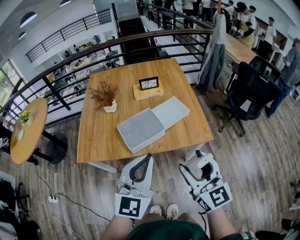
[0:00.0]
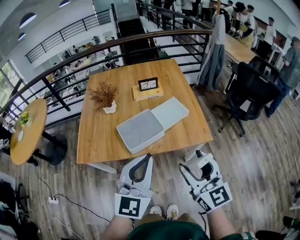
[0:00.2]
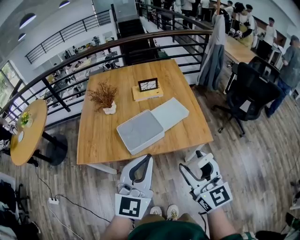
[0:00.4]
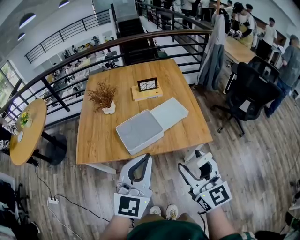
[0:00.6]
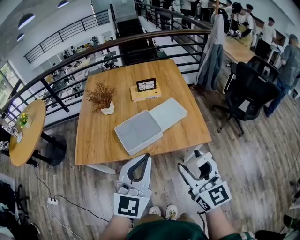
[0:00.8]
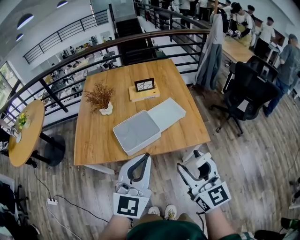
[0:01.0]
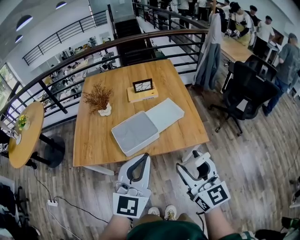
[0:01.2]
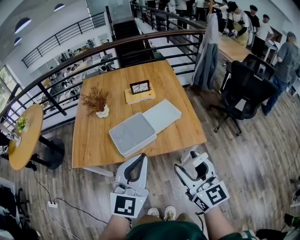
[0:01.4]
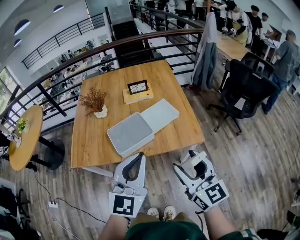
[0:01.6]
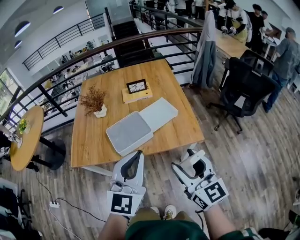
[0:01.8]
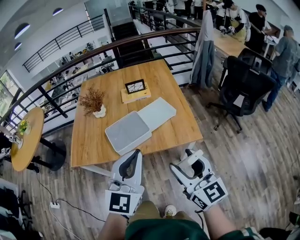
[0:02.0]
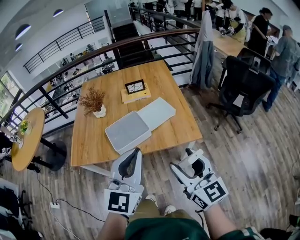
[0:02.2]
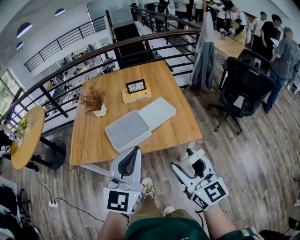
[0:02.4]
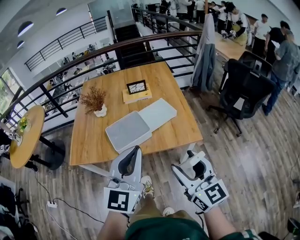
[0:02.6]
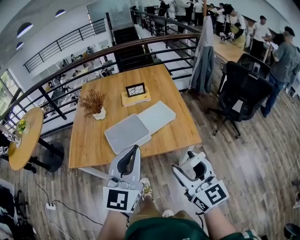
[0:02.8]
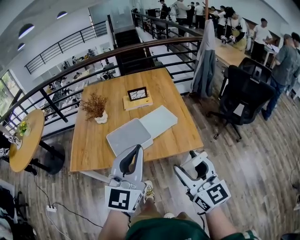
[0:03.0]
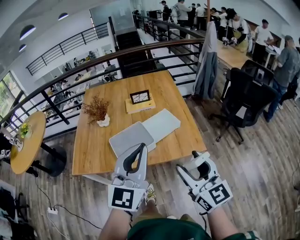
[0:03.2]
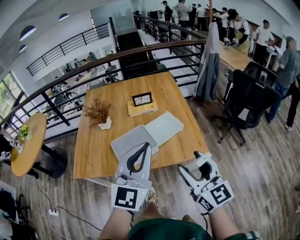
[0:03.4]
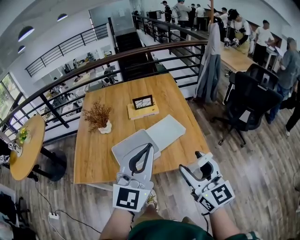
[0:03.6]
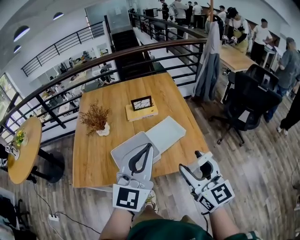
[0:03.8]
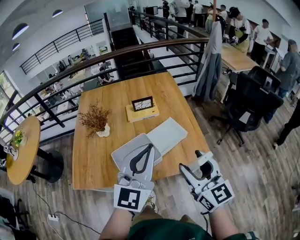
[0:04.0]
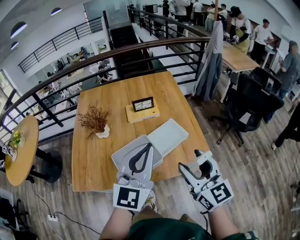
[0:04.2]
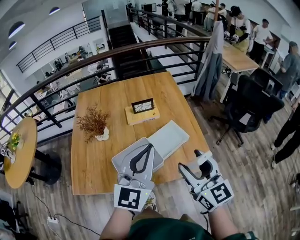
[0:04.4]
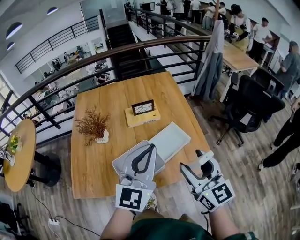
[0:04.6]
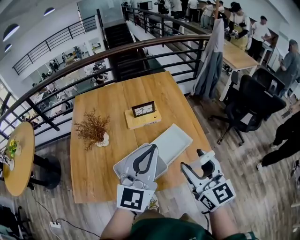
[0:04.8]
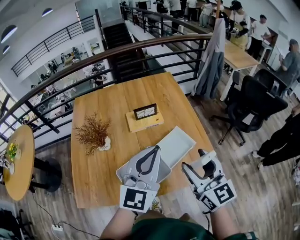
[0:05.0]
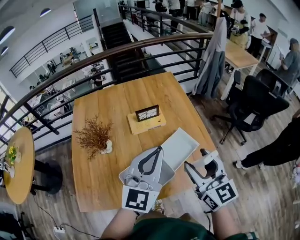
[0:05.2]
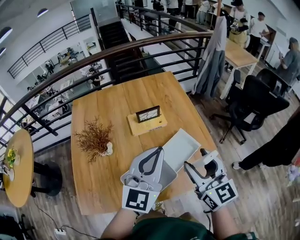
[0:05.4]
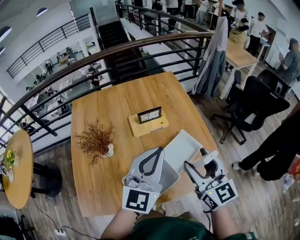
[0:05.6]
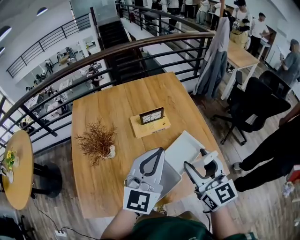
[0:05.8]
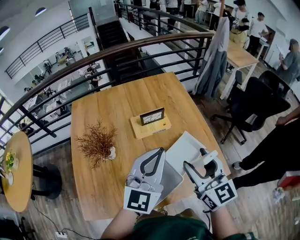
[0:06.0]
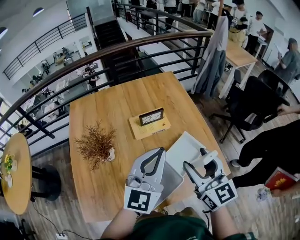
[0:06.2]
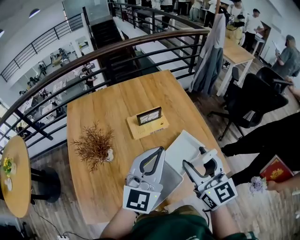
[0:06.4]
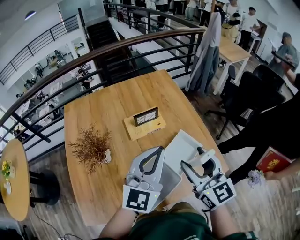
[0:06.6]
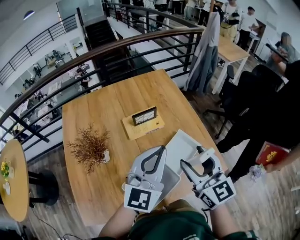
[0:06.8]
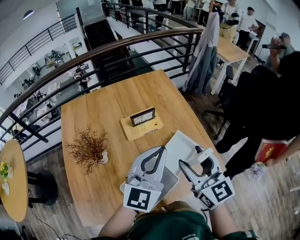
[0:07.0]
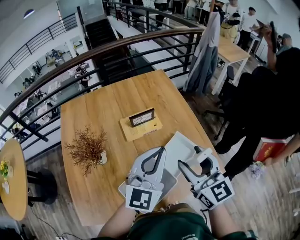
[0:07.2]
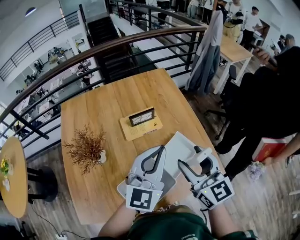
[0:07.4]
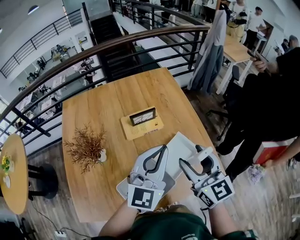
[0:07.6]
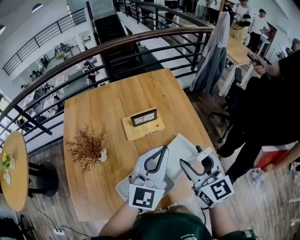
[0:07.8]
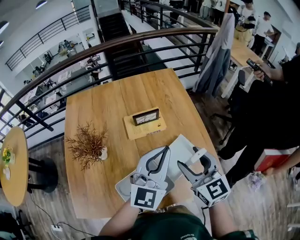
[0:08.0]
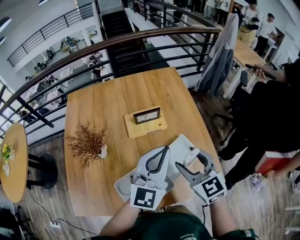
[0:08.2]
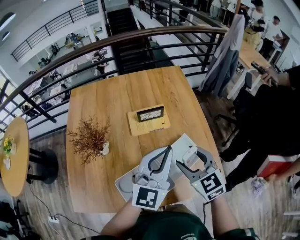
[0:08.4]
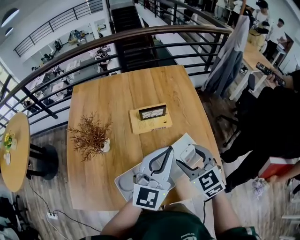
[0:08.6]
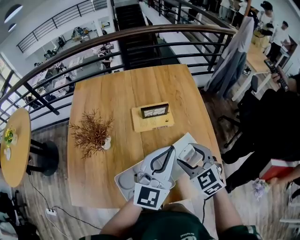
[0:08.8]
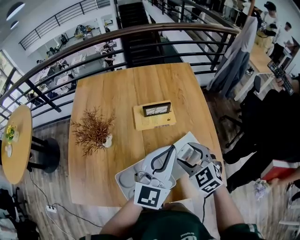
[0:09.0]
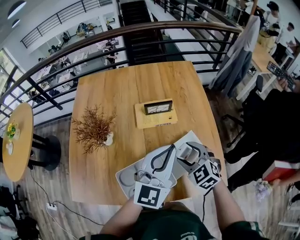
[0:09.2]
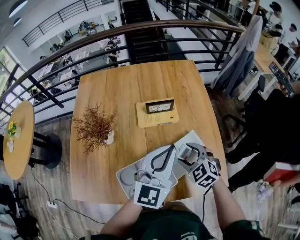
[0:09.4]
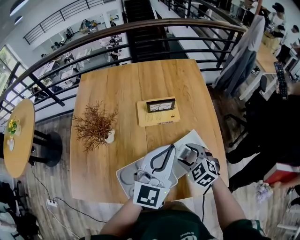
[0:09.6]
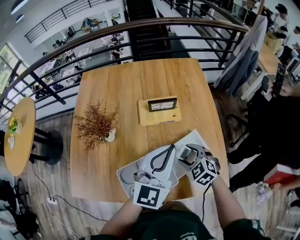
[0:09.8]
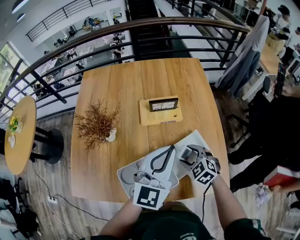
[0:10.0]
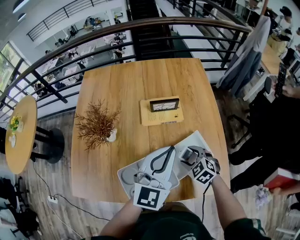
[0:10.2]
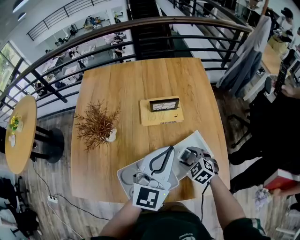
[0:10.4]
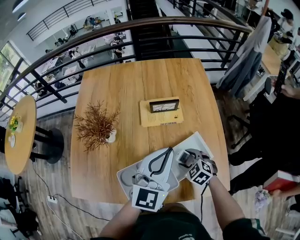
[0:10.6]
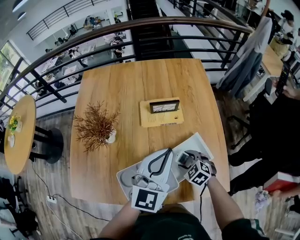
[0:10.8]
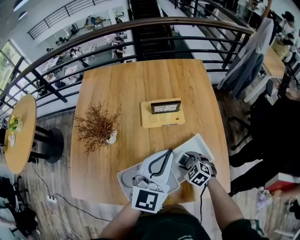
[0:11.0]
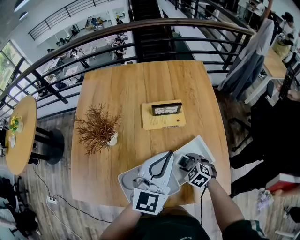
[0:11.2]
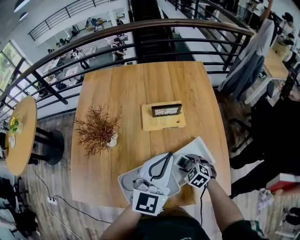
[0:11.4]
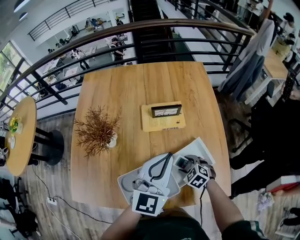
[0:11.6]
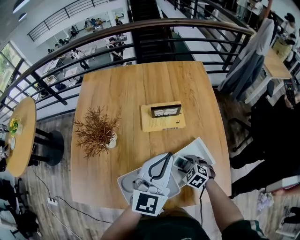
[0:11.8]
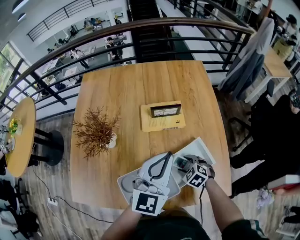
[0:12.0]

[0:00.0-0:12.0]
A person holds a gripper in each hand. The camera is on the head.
0:00.0 to 0:01.6: The right gripper moves about 5 cm.
0:01.6 to 0:03.0: The grippers make only small movements.
0:03.0 to 0:04.4: The grippers both shift forward by approximately 20 cm.
0:04.4 to 0:06.0: Both grippers move forward and to the left, roughly 15 cm.
0:06.0 to 0:07.6: The left gripper moves about 5 cm, while the right gripper shifts by approximately 5 cm.
0:07.6 to 0:09.0: The right gripper goes some 15 cm downward, and tips its fingers downward by some 30 degrees.
0:09.0 to 0:10.4: The right gripper moves downward, some 15 cm.
0:10.4 to 0:12.0: The right gripper travels downward by some 5 cm.

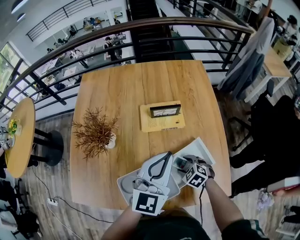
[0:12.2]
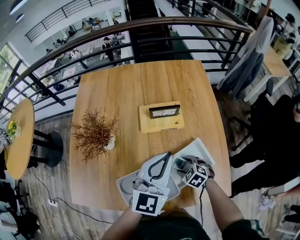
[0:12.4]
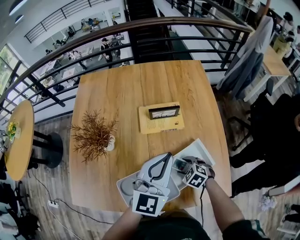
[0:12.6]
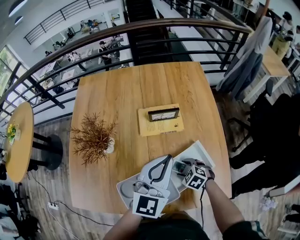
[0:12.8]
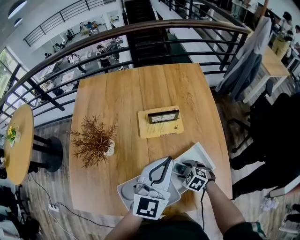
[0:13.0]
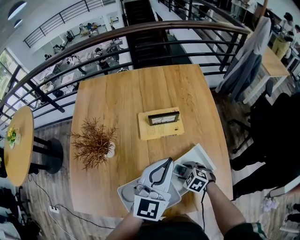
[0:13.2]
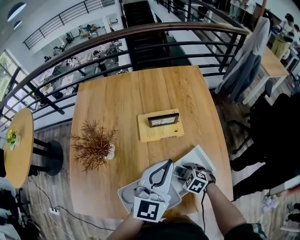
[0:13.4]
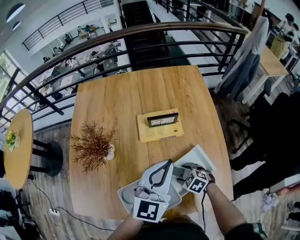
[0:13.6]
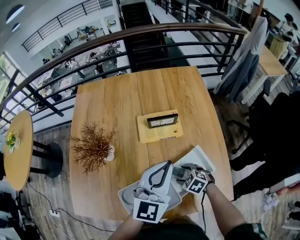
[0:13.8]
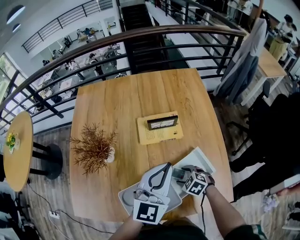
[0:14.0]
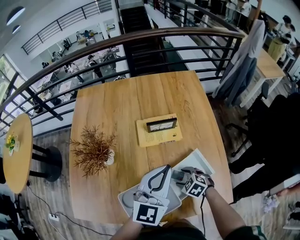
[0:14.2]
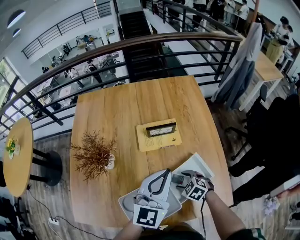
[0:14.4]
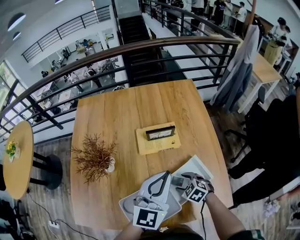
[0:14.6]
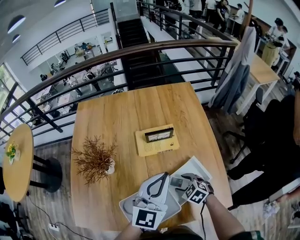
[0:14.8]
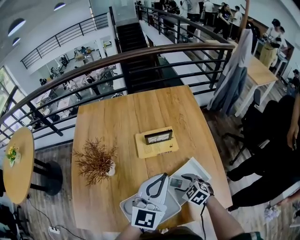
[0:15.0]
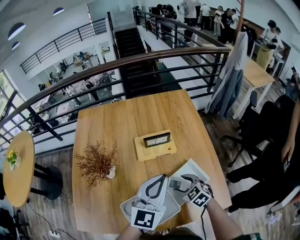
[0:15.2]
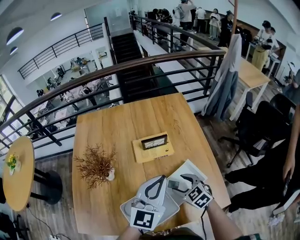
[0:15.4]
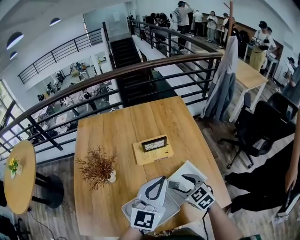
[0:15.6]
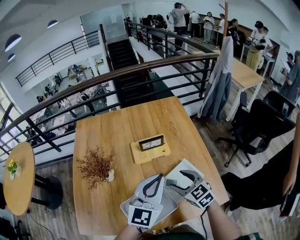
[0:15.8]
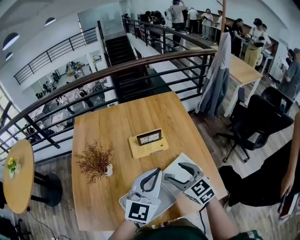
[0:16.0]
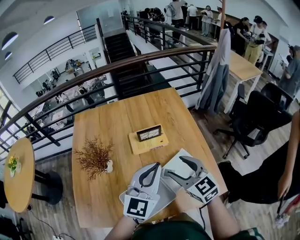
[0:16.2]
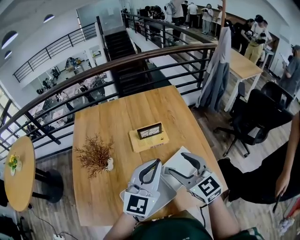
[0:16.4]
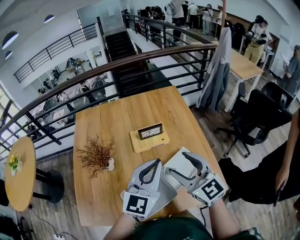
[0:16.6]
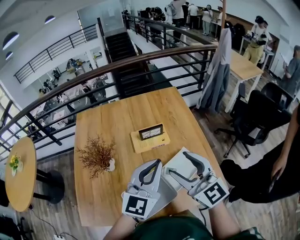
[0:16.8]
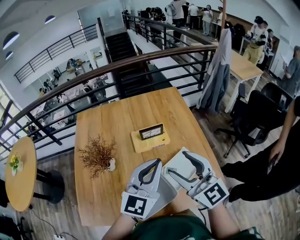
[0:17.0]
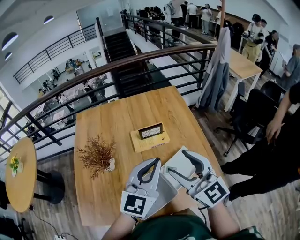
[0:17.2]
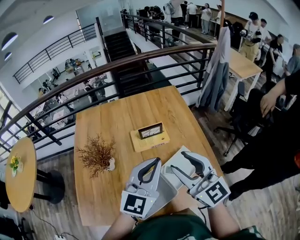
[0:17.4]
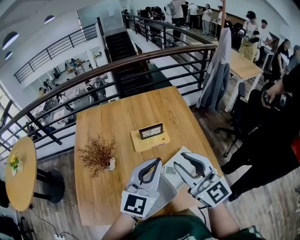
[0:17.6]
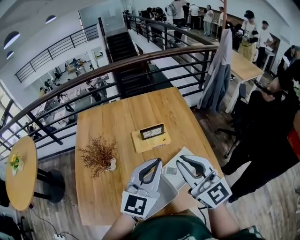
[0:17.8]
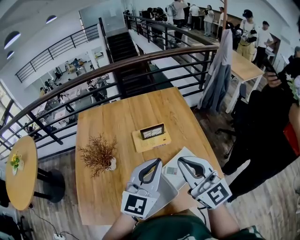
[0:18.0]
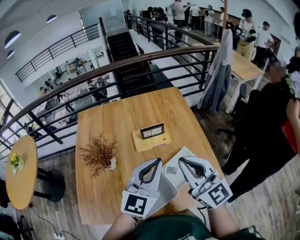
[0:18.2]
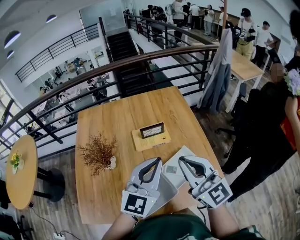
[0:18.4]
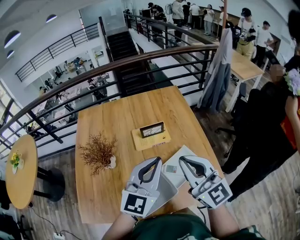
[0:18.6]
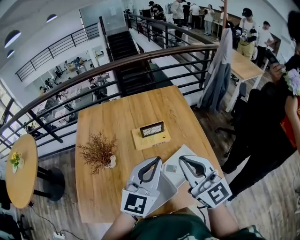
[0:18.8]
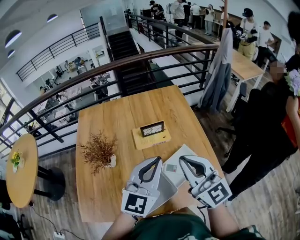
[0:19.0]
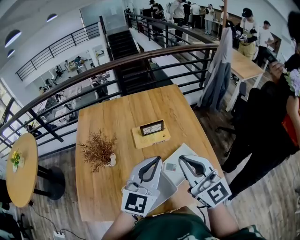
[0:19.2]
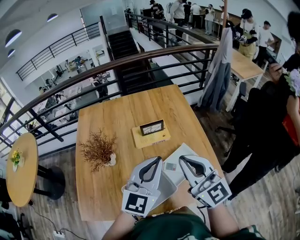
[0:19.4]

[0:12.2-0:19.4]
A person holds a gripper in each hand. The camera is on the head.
0:12.2 to 0:13.6: There are only small adjustments of the grippers.
0:13.6 to 0:15.0: The right gripper goes some 5 cm upward.
0:15.0 to 0:16.6: The left gripper heads upward, covering about 5 cm. The right gripper is displaced upward by roughly 30 cm, and tips its fingers upward by approximately 50 degrees.
0:16.6 to 0:18.0: The right gripper shifts about 5 cm upward, and closes its fingers.
0:18.0 to 0:19.4: The grippers stay close to where they were, moving slightly.

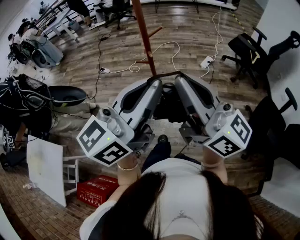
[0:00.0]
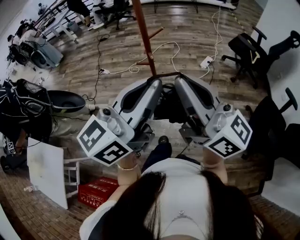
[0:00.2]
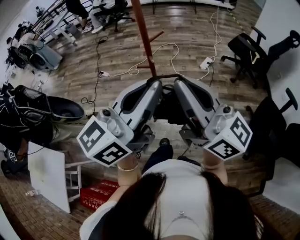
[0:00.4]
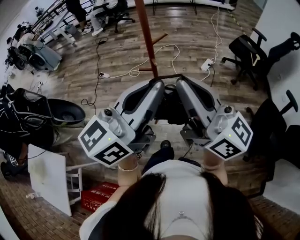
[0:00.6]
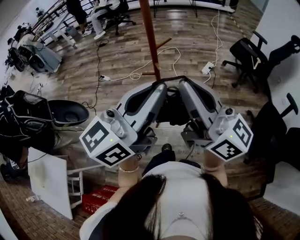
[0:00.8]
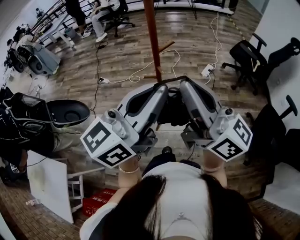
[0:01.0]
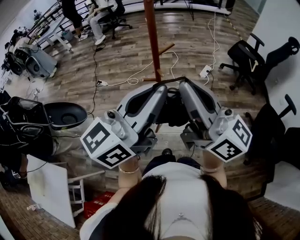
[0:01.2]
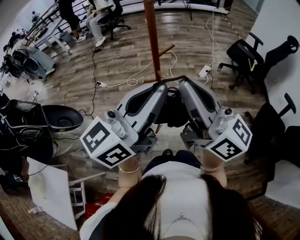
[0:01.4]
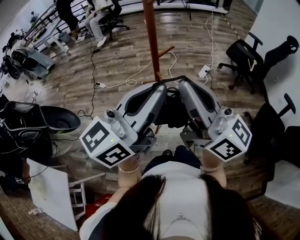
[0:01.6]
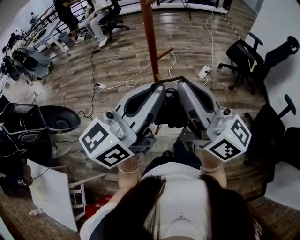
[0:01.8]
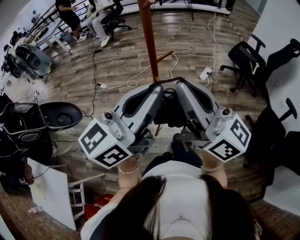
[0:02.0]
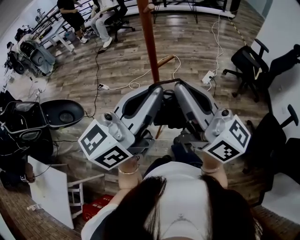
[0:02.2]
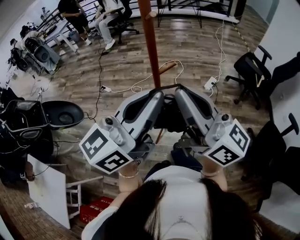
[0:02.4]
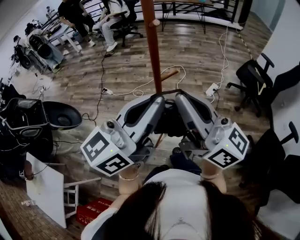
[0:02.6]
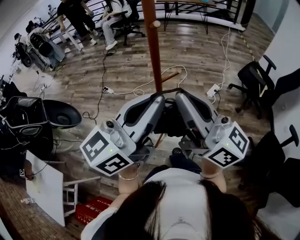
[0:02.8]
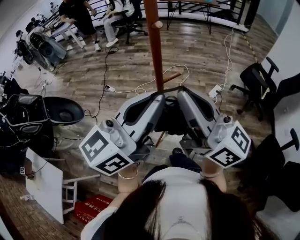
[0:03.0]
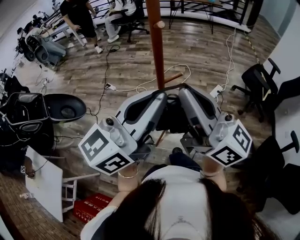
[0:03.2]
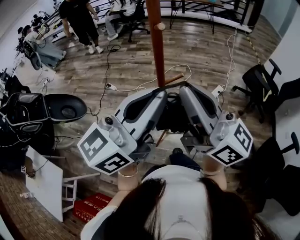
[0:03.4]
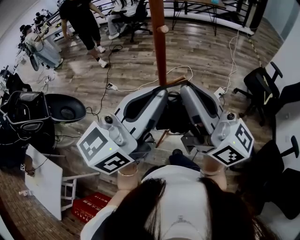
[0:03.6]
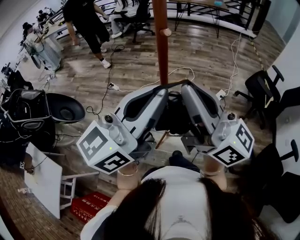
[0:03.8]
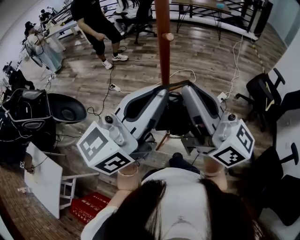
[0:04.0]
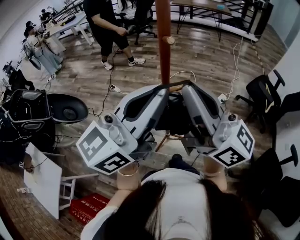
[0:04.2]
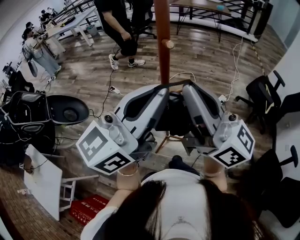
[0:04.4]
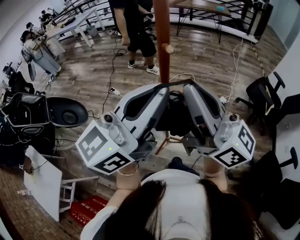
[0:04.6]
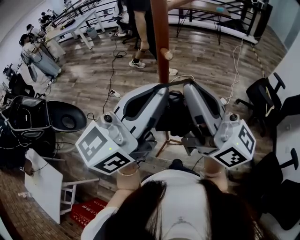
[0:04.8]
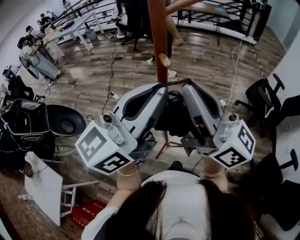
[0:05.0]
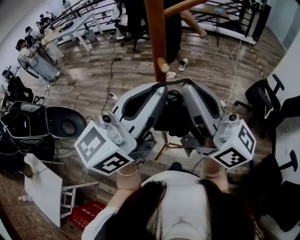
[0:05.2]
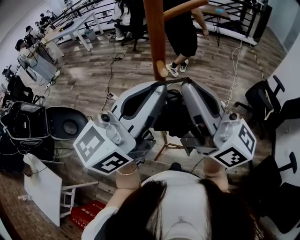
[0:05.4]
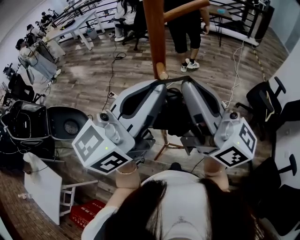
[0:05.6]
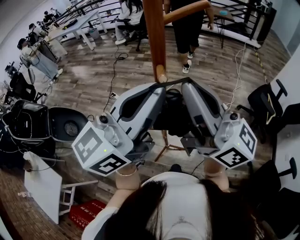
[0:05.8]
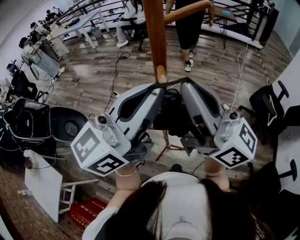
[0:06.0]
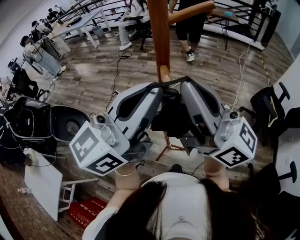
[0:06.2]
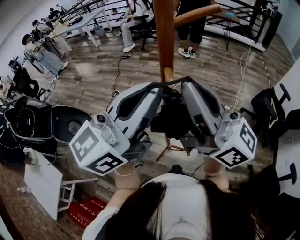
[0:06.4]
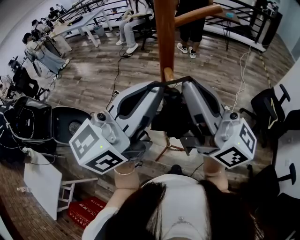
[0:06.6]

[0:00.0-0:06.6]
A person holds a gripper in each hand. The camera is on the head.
0:00.0 to 0:01.6: Both grippers travel together forward and to the left, some 15 cm.
0:01.6 to 0:03.2: Both grippers move forward, roughly 10 cm.
0:03.2 to 0:05.0: The left gripper is displaced forward and upward by some 10 cm. Meanwhile the right gripper heads forward, covering about 10 cm.
0:05.0 to 0:06.6: The right gripper ends up approximately 5 cm from where it was.
